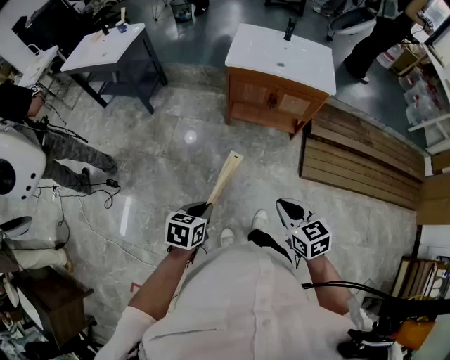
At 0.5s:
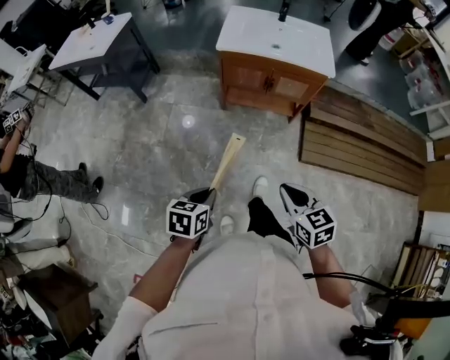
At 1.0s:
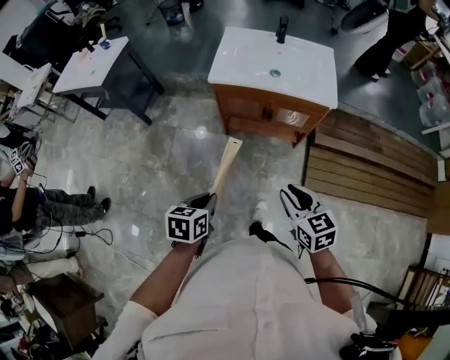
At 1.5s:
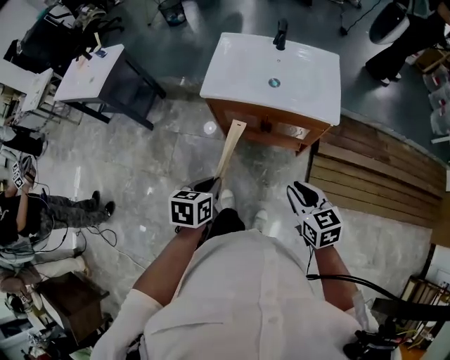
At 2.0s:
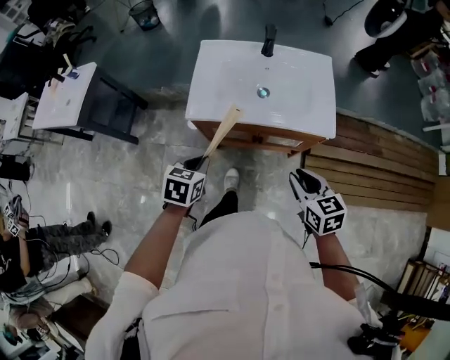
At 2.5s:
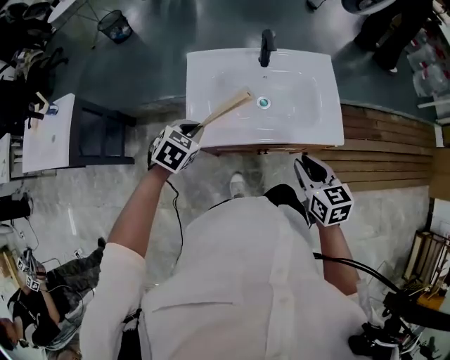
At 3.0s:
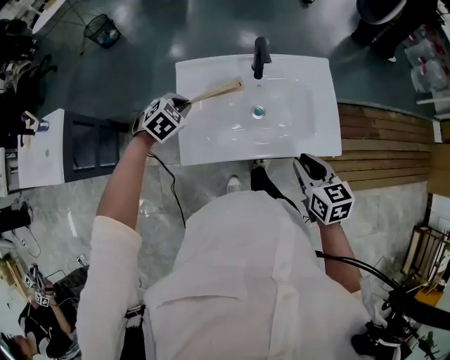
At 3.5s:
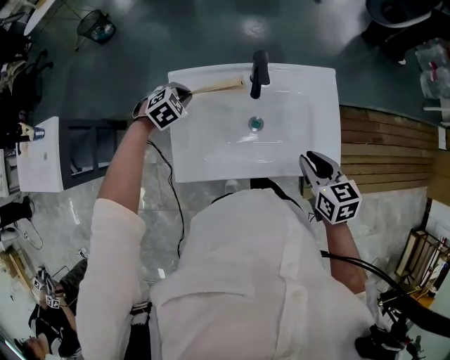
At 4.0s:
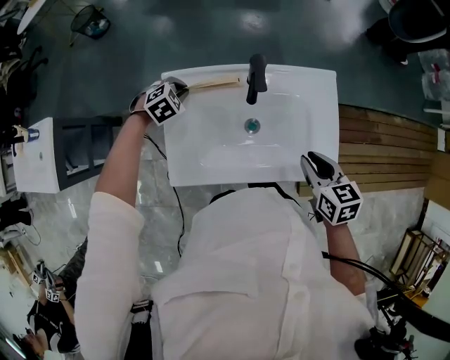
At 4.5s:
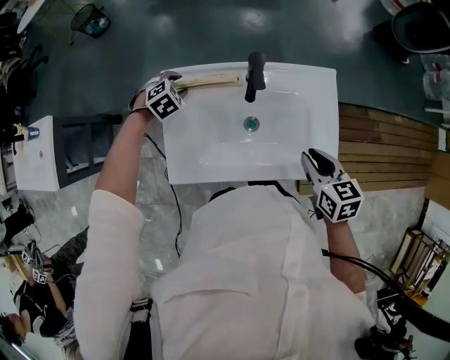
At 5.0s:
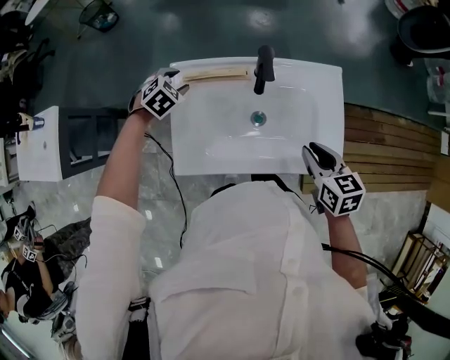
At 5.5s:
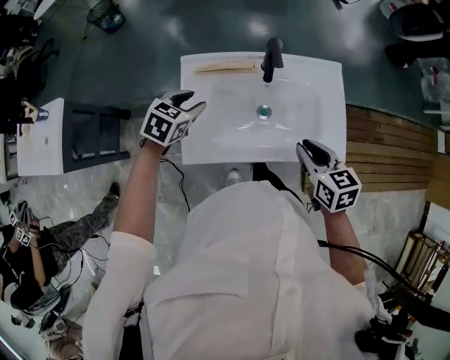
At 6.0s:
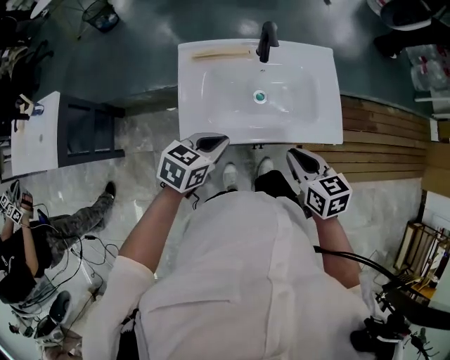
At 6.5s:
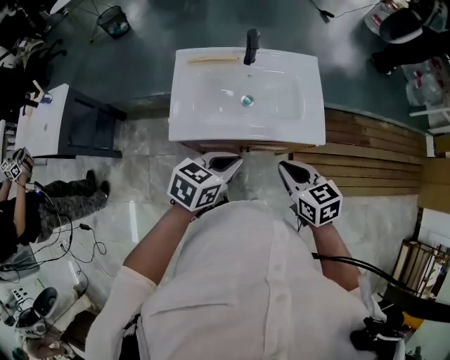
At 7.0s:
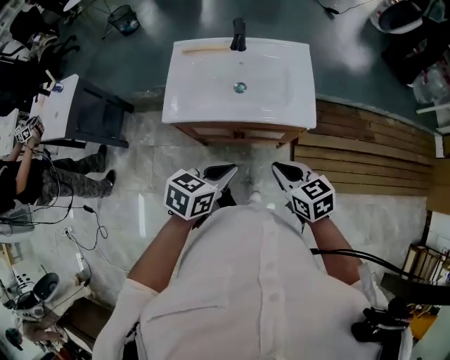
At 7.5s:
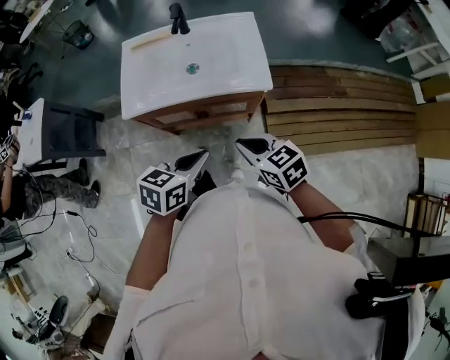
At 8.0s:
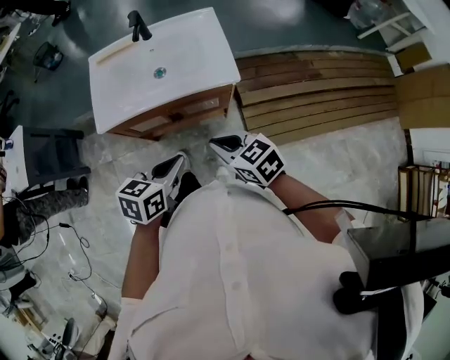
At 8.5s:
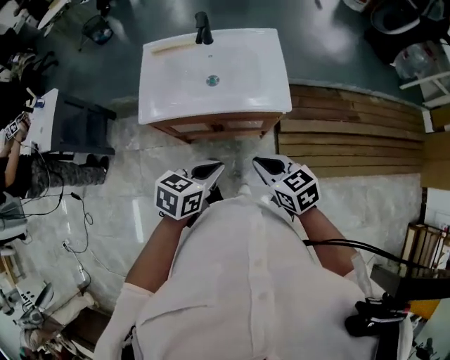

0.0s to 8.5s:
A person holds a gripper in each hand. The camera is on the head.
0.0s to 2.0s: The pair of grippers is taken forward, approximately 50 cm.
2.0s to 4.0s: The right gripper goes approximately 30 cm forward; the left gripper moves forward, approximately 50 cm, and rolls clockwise, seen from behind, by some 60 degrees.
4.0s to 6.5s: The left gripper shifts approximately 50 cm backward, to the right and upward, tips its fingers upward by approximately 40 degrees, and opens, then closes once more. The right gripper is displaced backward by about 20 cm.
6.5s to 8.5s: Both grippers move backward and to the right, approximately 15 cm.

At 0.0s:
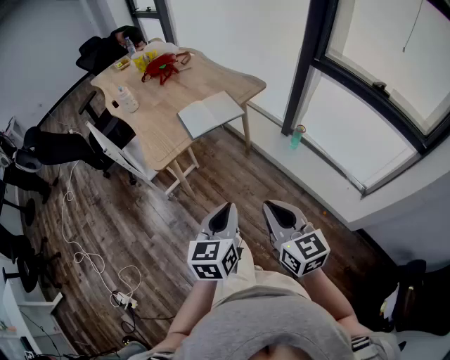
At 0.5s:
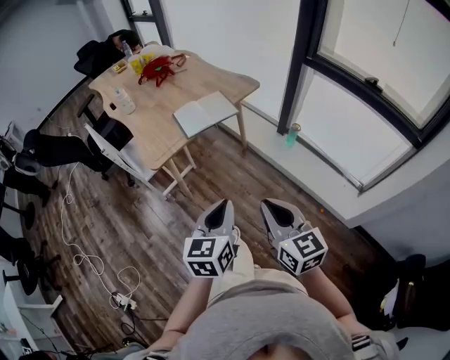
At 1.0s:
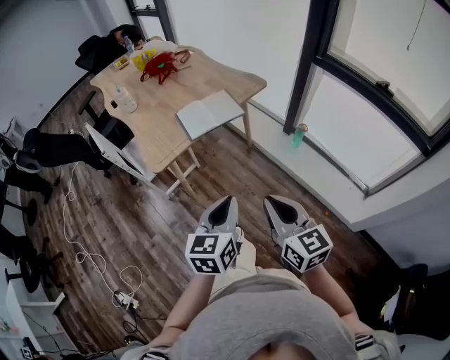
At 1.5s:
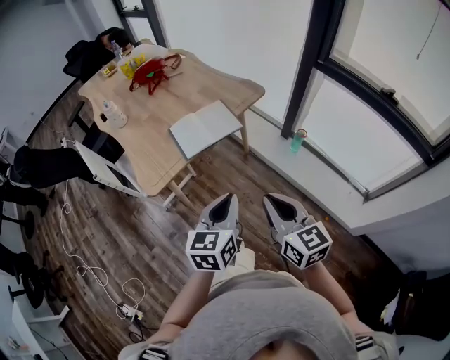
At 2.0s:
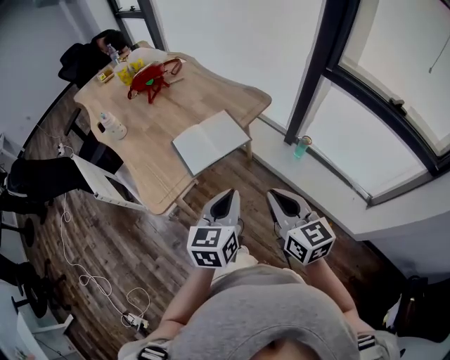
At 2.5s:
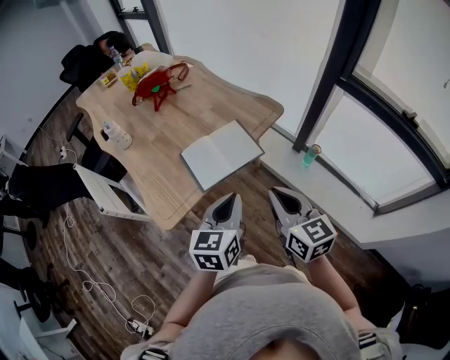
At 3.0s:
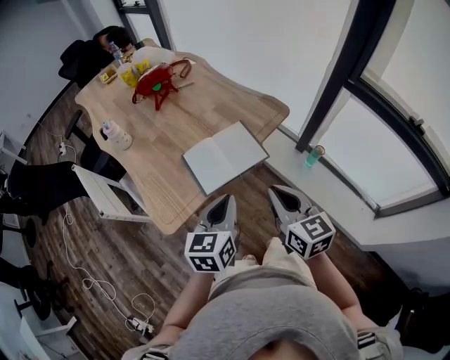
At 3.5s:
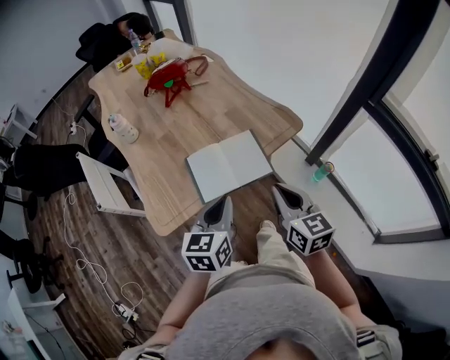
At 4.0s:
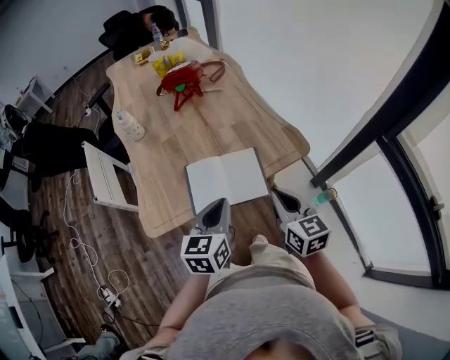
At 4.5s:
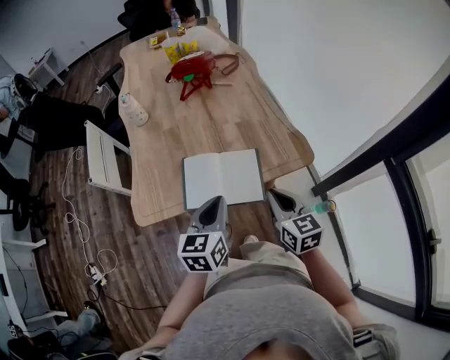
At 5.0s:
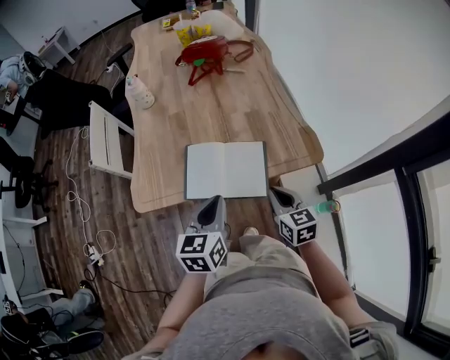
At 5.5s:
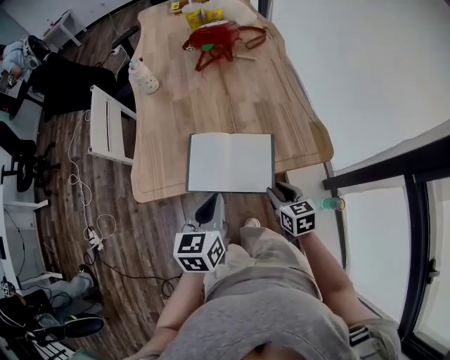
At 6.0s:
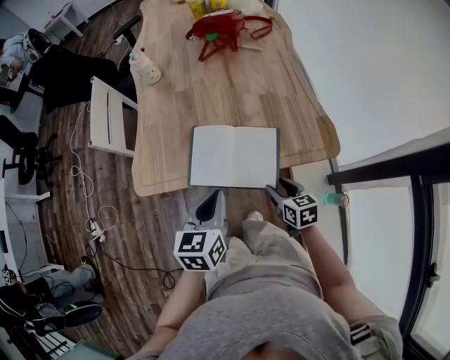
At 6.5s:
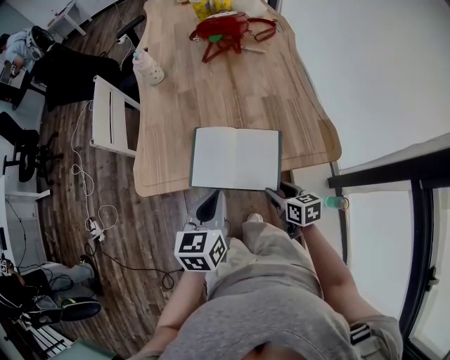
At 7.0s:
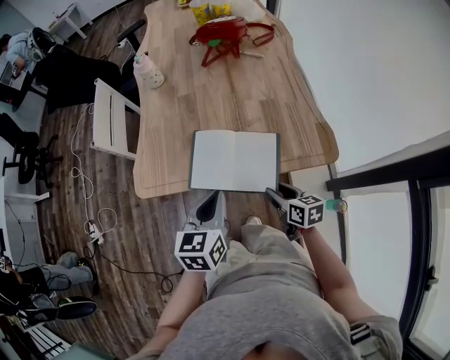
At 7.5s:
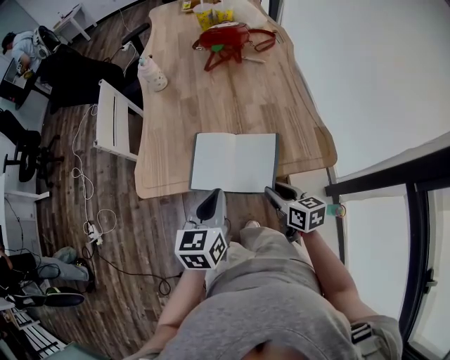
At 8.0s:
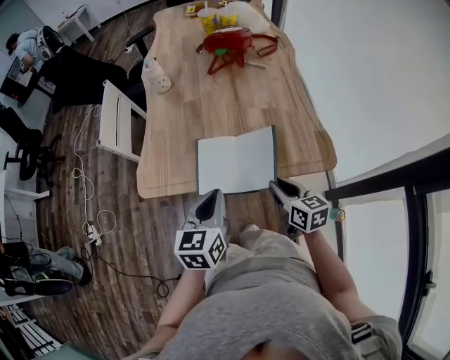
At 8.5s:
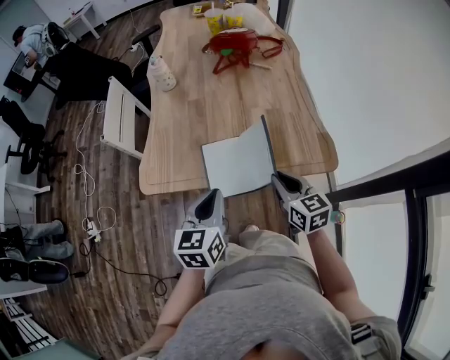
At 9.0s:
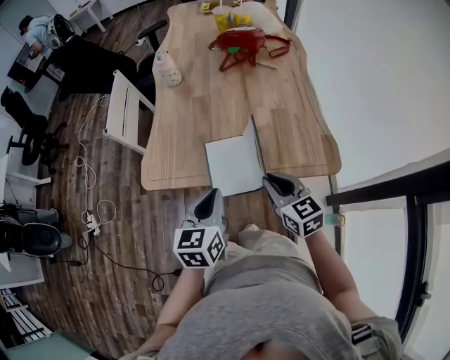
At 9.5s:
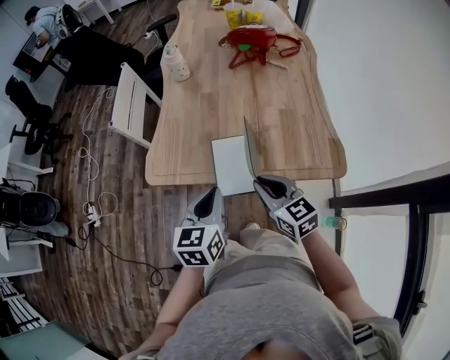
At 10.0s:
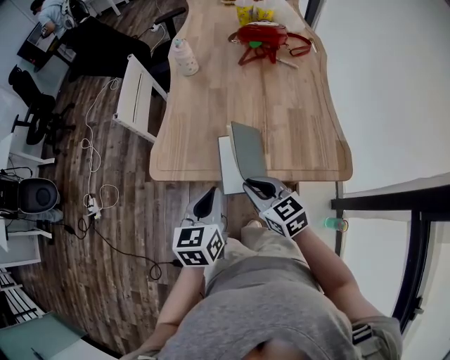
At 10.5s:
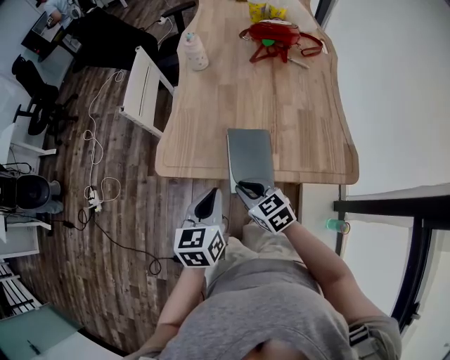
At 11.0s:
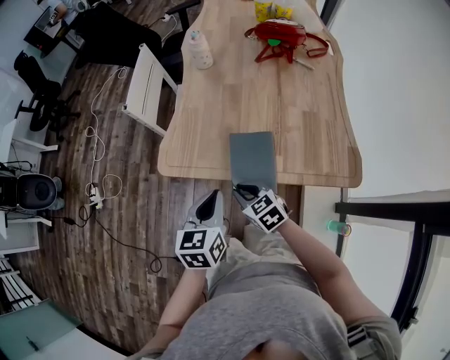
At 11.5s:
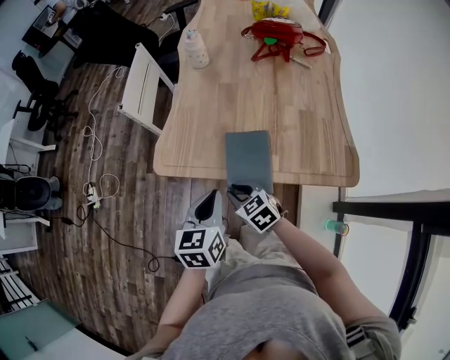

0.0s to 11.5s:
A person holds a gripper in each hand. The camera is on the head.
0.0s to 2.0s: The grippers both shift forward by roughly 25 cm.
2.0s to 4.0s: The two grippers go approximately 25 cm forward. The left gripper rotates about 20 degrees.
4.0s to 6.0s: The left gripper goes approximately 5 cm downward, and swivels roughly 20 degrees. The right gripper heads downward, covering roughly 20 cm, rotates roughly 30 degrees, and opens up.
6.0s to 7.5s: The right gripper is displaced upward by approximately 5 cm, and closes its fingers.
7.5s to 9.5s: The right gripper goes approximately 10 cm upward and to the left, and turns by roughly 30 degrees.
9.5s to 11.5s: The right gripper is displaced downward and to the left by about 15 cm, and rotates approximately 20 degrees. Meanwhile the left gripper ends up some 5 cm from where it was.

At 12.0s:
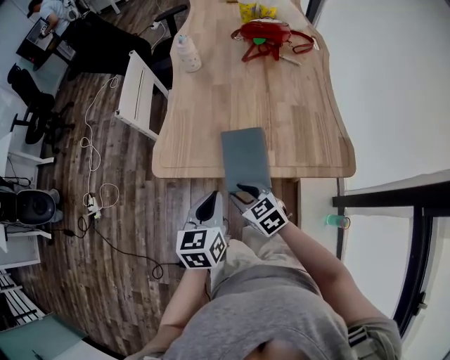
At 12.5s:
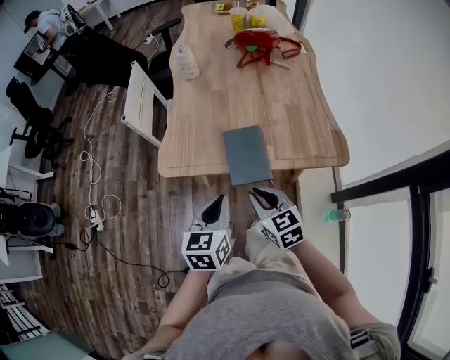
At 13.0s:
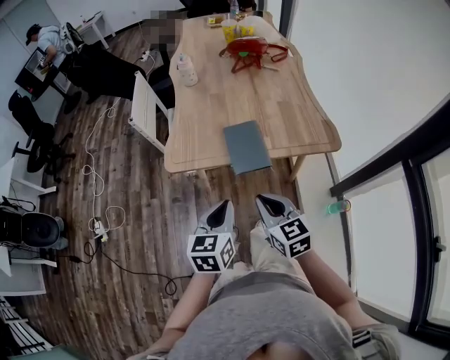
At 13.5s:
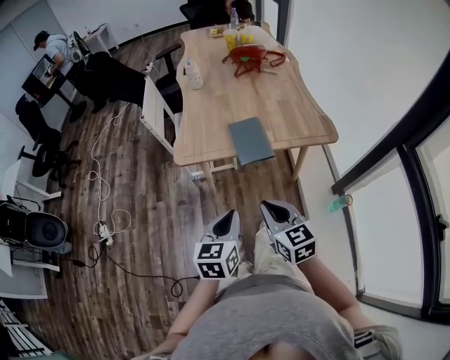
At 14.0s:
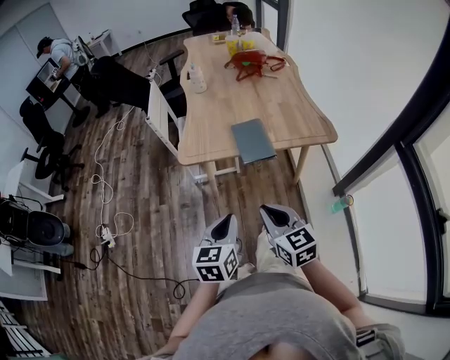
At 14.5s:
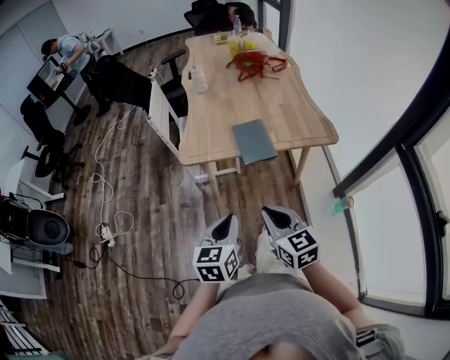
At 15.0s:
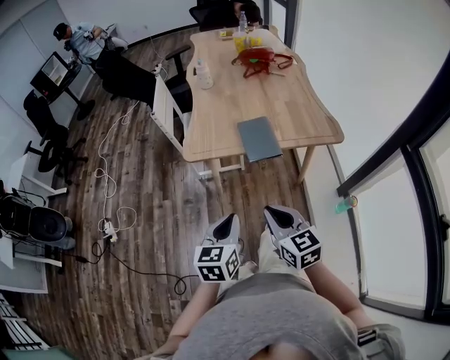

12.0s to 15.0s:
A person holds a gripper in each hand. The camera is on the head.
12.0s to 13.5s: The left gripper travels backward by about 20 cm. Meanwhile the right gripper travels backward and upward by some 25 cm, changes its angle by approximately 30 degrees, and closes its fingers.
13.5s to 15.0s: The grippers make only small movements.

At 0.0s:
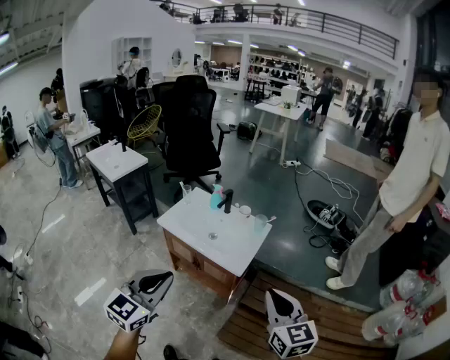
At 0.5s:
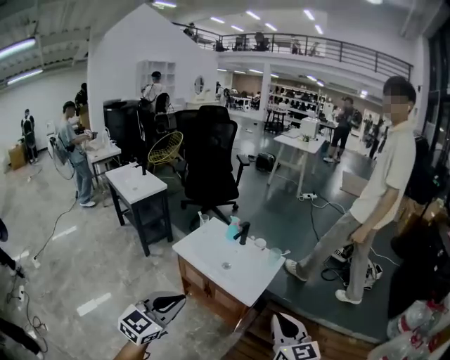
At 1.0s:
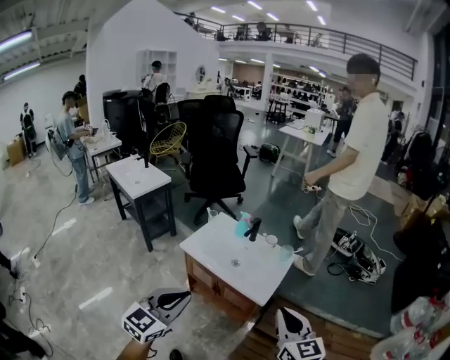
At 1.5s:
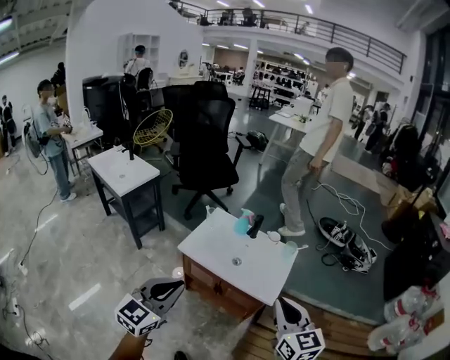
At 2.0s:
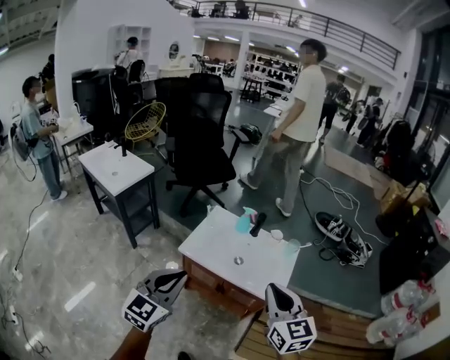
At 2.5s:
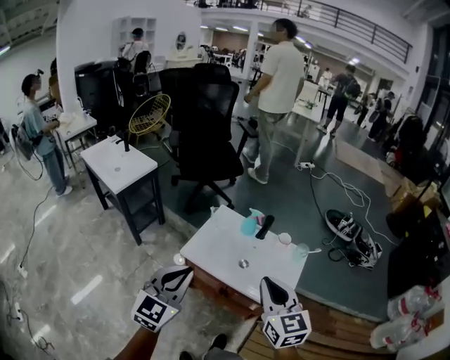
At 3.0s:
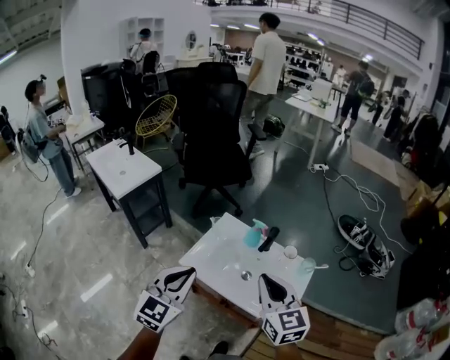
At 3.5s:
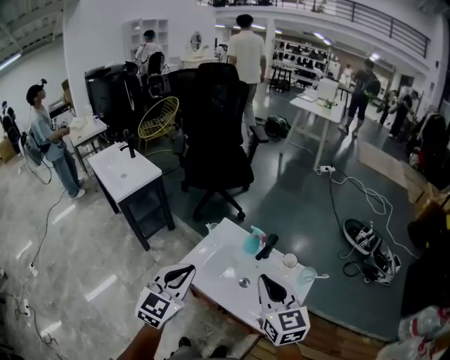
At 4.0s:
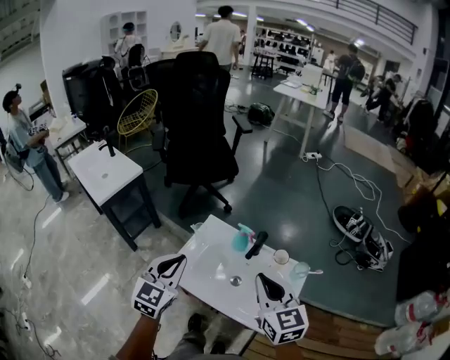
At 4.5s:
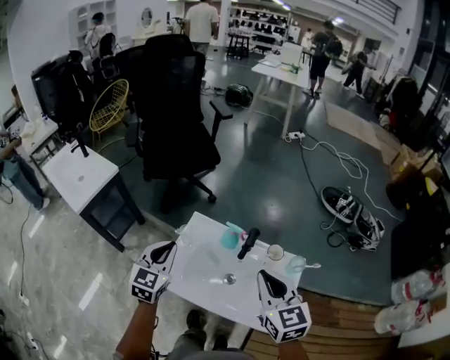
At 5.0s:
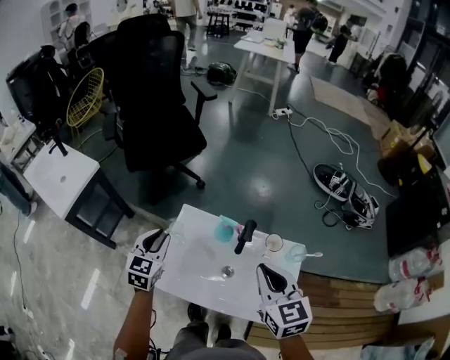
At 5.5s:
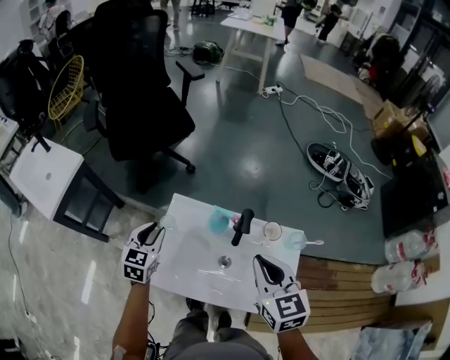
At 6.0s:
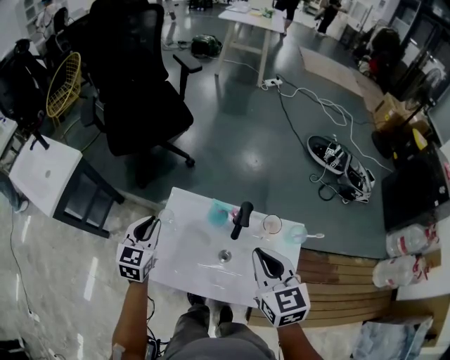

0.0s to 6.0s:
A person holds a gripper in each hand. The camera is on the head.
0.0s to 2.0s: Both grippers travel together to the left and forward, approximately 30 cm.
2.0s to 4.0s: Both grippers move forward, roughly 30 cm.
4.0s to 6.0s: The left gripper moves forward and downward, roughly 25 cm. The right gripper travels forward and downward by about 15 cm.
